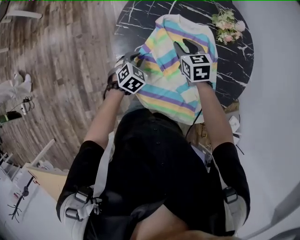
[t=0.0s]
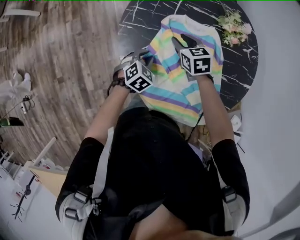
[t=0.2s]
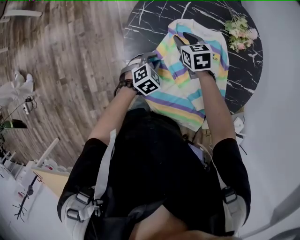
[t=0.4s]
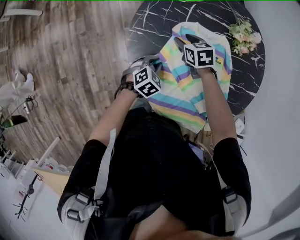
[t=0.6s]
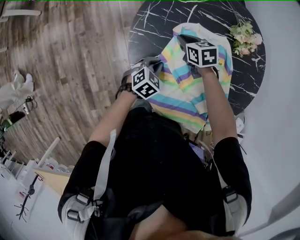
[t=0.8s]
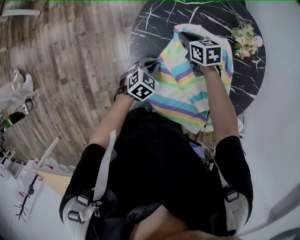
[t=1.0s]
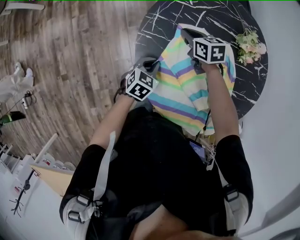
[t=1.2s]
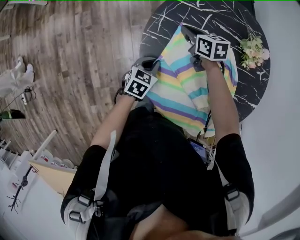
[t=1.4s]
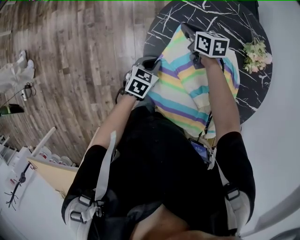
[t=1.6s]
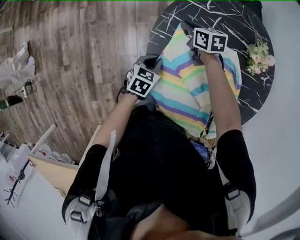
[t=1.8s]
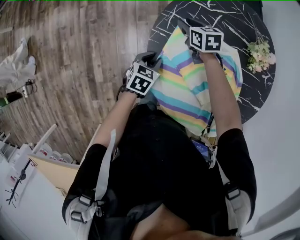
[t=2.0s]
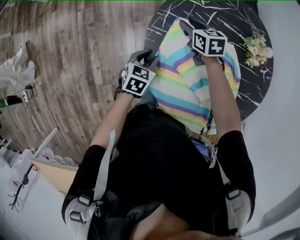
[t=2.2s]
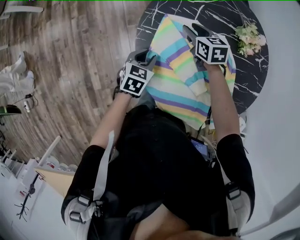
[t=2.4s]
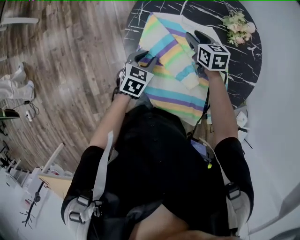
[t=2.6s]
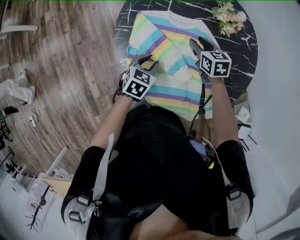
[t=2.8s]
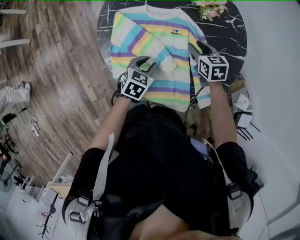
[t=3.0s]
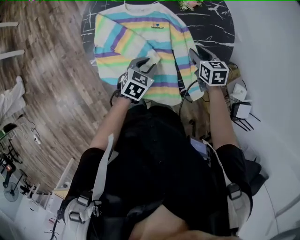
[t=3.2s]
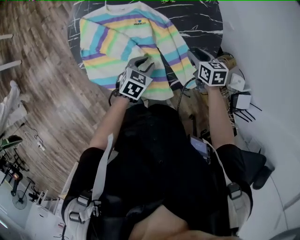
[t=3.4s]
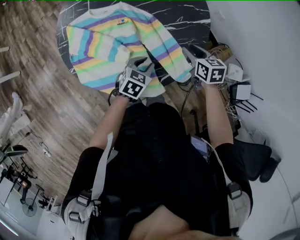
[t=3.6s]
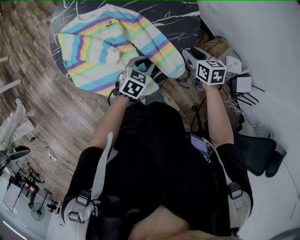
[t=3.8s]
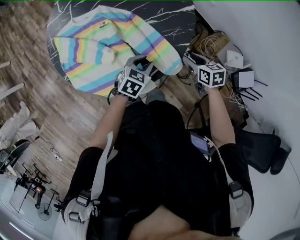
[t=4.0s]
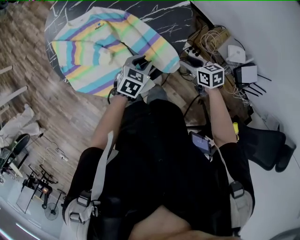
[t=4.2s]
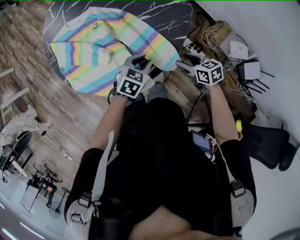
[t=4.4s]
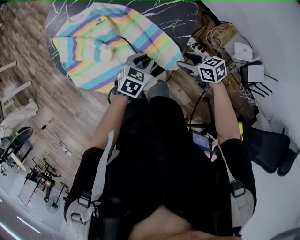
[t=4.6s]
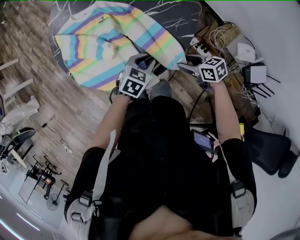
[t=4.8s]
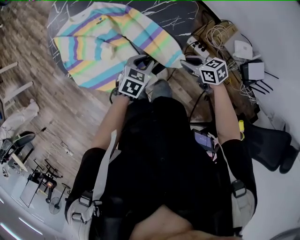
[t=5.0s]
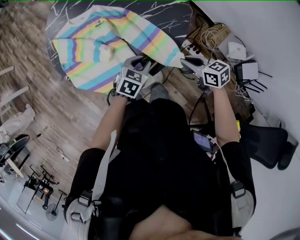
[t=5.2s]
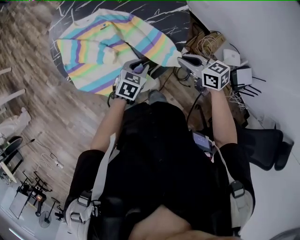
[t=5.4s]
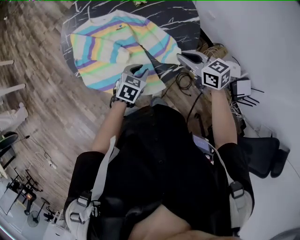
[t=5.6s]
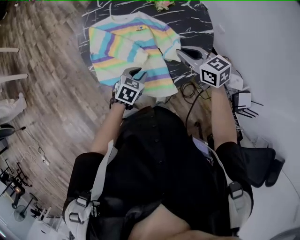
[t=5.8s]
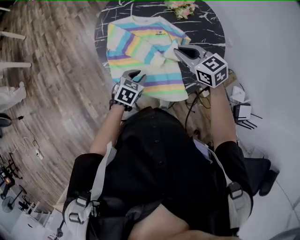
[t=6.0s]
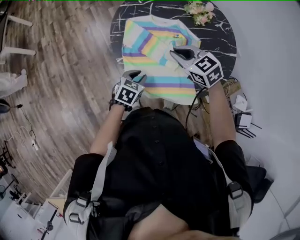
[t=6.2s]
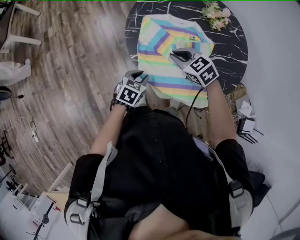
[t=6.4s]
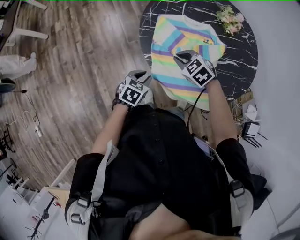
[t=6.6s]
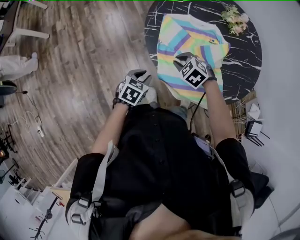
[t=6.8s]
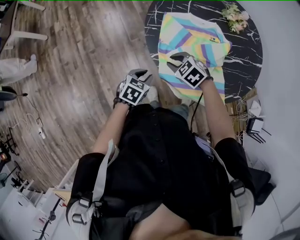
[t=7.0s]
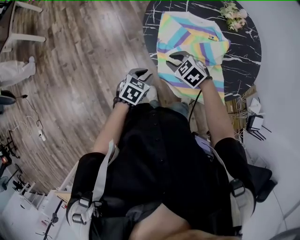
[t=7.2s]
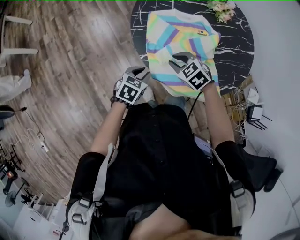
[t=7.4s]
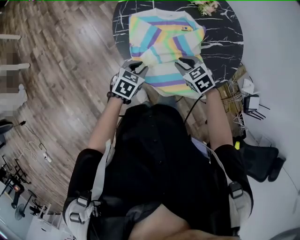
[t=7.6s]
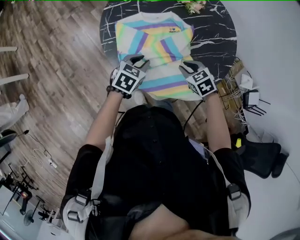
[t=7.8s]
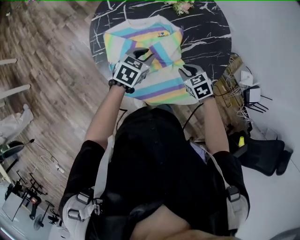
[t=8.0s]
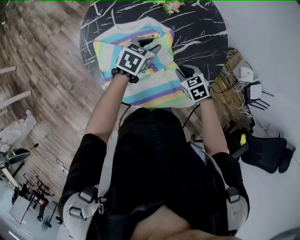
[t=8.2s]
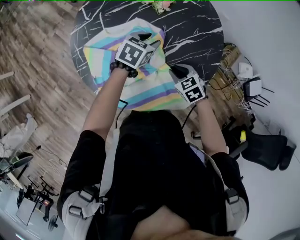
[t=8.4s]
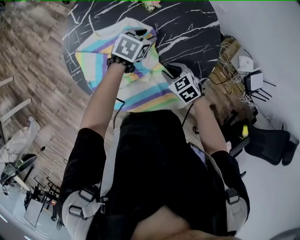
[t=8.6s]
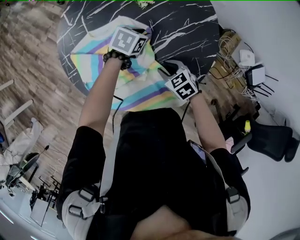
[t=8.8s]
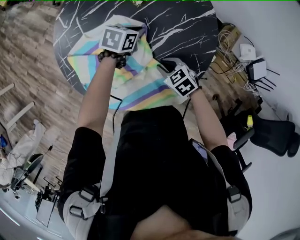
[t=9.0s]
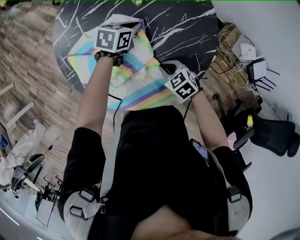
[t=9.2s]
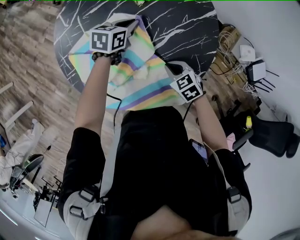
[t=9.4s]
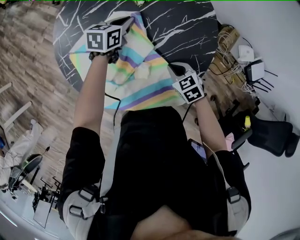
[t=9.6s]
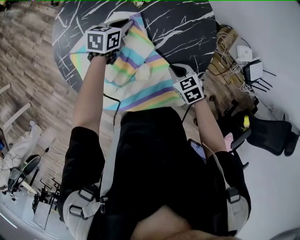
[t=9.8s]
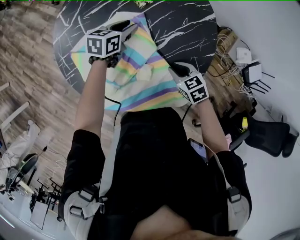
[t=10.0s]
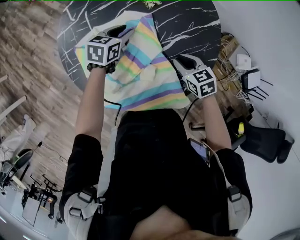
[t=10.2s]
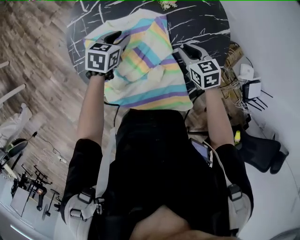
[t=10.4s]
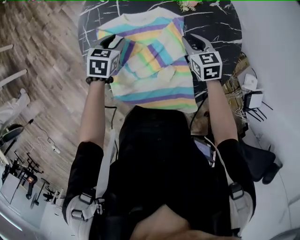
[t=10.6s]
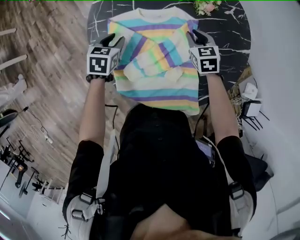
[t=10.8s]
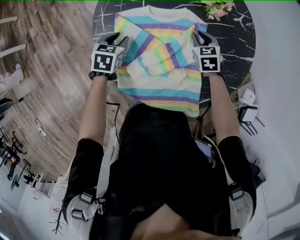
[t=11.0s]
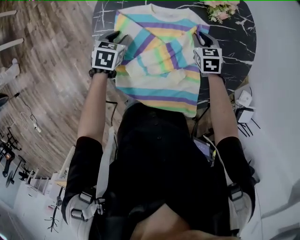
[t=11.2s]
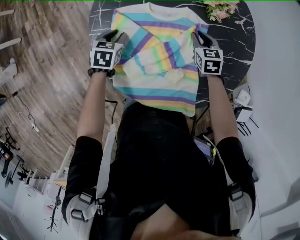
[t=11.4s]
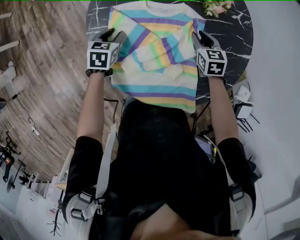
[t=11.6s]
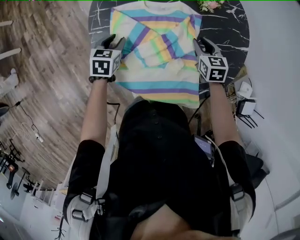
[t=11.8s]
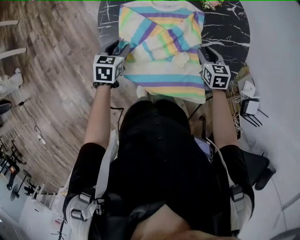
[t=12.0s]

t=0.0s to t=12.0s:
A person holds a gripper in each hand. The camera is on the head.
t=0.0s to t=1.6s: The right gripper moves to the left and forward, some 20 cm, and closes up. The left gripper heads to the left and forward, covering roughly 10 cm, and changes its angle by some 30 degrees.
t=1.6s to t=3.0s: The right gripper goes some 35 cm to the right and backward, turns by roughly 20 degrees, and opens up; the left gripper is displaced to the right and backward by roughly 20 cm, and rotates approximately 20 degrees.
t=3.0s to t=4.4s: The left gripper moves to the right, about 25 cm, and rotates about 30 degrees. Meanwhile the right gripper goes roughly 35 cm to the right and backward, and changes its angle by roughly 30 degrees.
t=4.4s to t=6.0s: The right gripper is displaced to the left, upward and forward by approximately 40 cm, swivels some 40 degrees, and closes up. The left gripper goes some 25 cm to the left.
t=6.0s to t=7.6s: The right gripper is displaced downward and to the left by some 20 cm, and swivels some 30 degrees. Meanwhile the left gripper is displaced to the left and forward by approximately 15 cm.
t=7.6s to t=9.0s: The left gripper heads forward and to the right, covering some 35 cm, and rotates roughly 20 degrees. The right gripper heads to the right, downward and forward, covering some 20 cm, and rotates approximately 20 degrees.
t=9.0s to t=10.4s: The left gripper moves to the left, some 15 cm, swivels approximately 20 degrees, and opens up; the right gripper is displaced forward and upward by some 10 cm.
t=10.4s to t=12.0s: The left gripper travels to the left and backward by approximately 20 cm, and rotates approximately 20 degrees; the right gripper reaches some 10 cm forward, then returns.

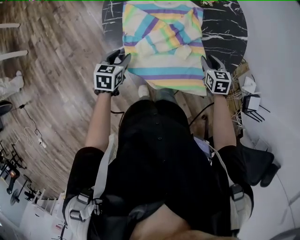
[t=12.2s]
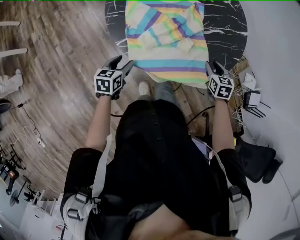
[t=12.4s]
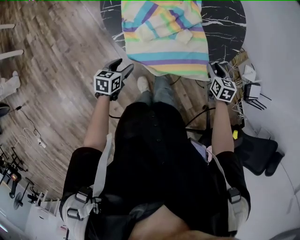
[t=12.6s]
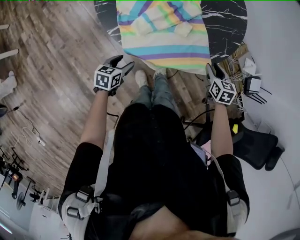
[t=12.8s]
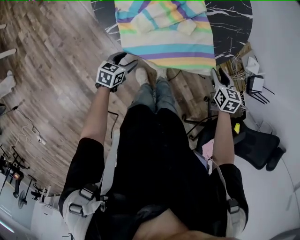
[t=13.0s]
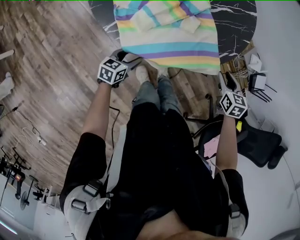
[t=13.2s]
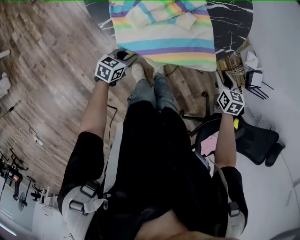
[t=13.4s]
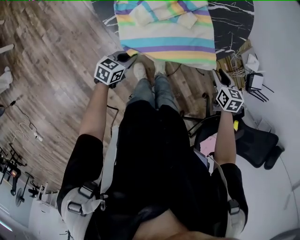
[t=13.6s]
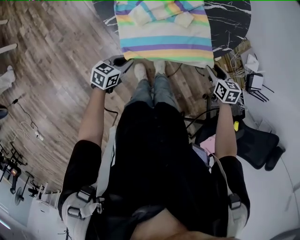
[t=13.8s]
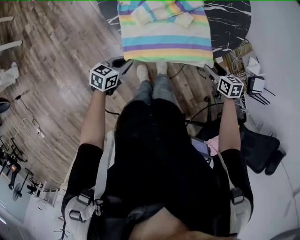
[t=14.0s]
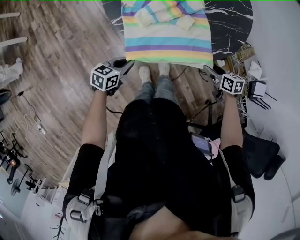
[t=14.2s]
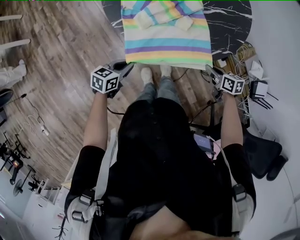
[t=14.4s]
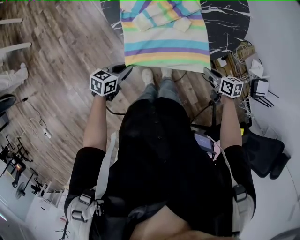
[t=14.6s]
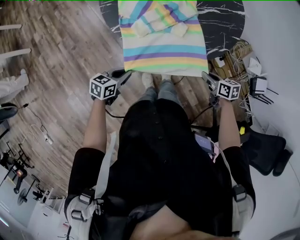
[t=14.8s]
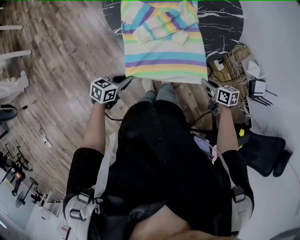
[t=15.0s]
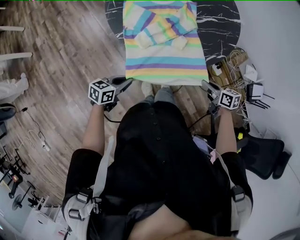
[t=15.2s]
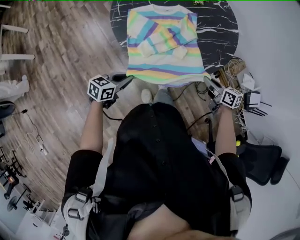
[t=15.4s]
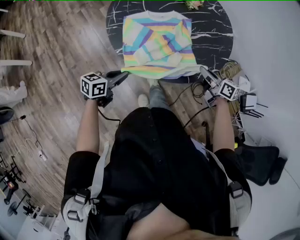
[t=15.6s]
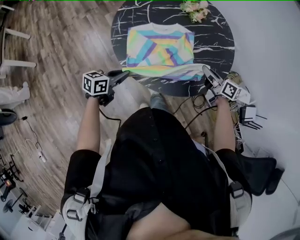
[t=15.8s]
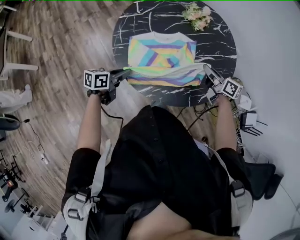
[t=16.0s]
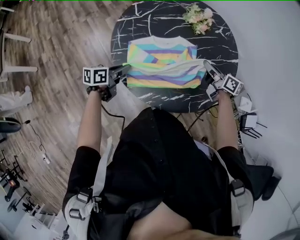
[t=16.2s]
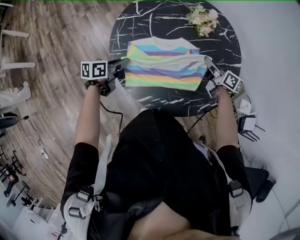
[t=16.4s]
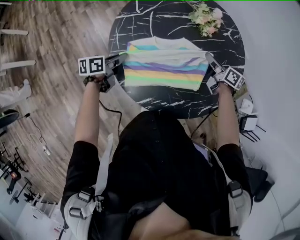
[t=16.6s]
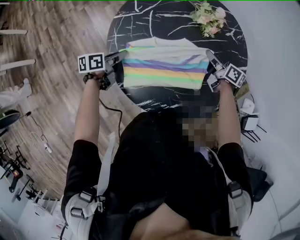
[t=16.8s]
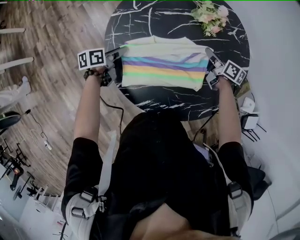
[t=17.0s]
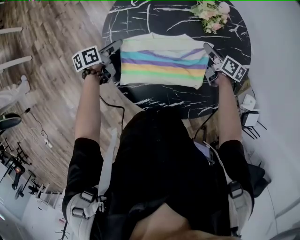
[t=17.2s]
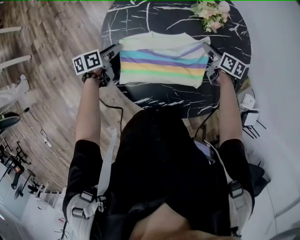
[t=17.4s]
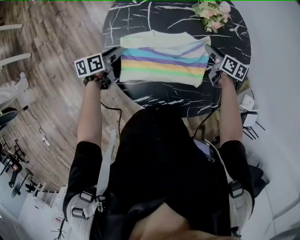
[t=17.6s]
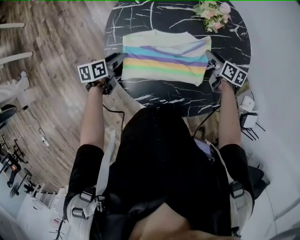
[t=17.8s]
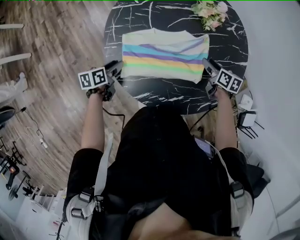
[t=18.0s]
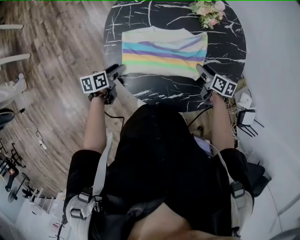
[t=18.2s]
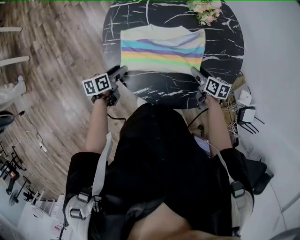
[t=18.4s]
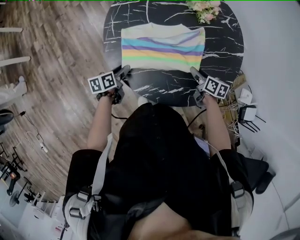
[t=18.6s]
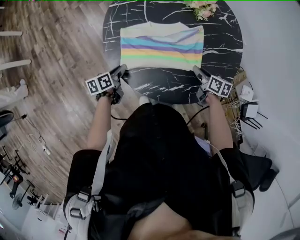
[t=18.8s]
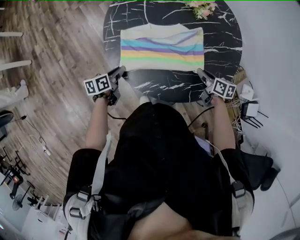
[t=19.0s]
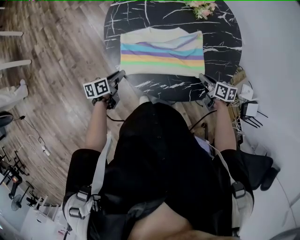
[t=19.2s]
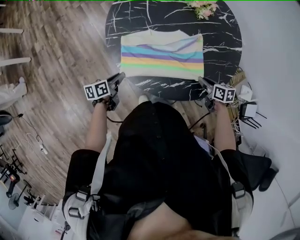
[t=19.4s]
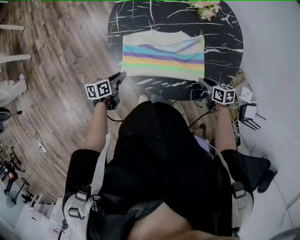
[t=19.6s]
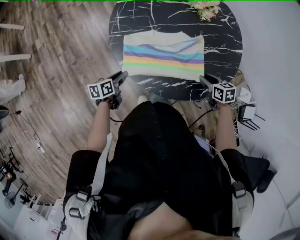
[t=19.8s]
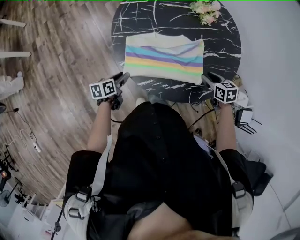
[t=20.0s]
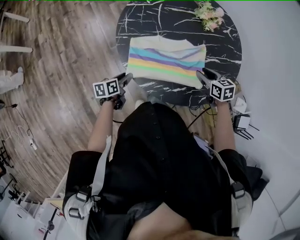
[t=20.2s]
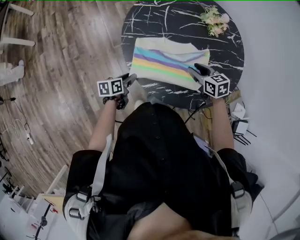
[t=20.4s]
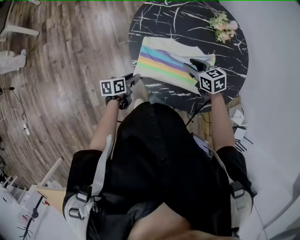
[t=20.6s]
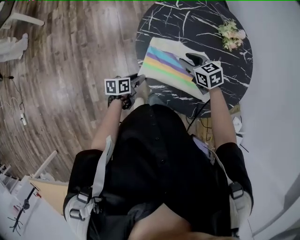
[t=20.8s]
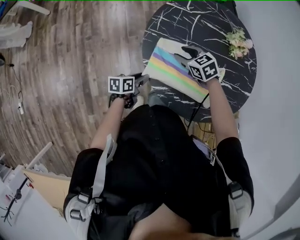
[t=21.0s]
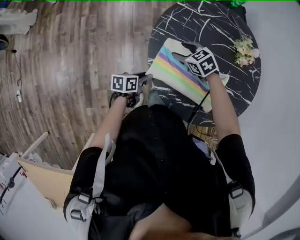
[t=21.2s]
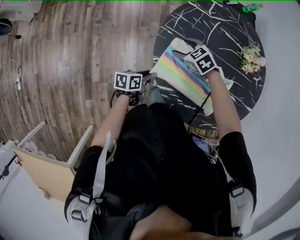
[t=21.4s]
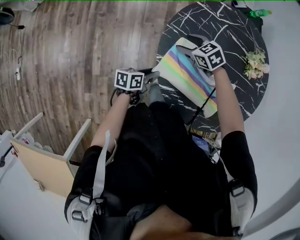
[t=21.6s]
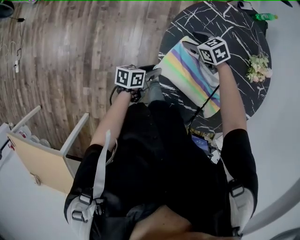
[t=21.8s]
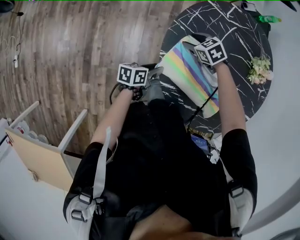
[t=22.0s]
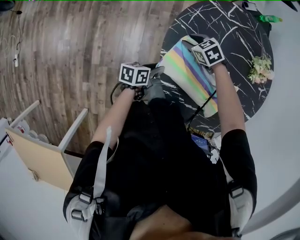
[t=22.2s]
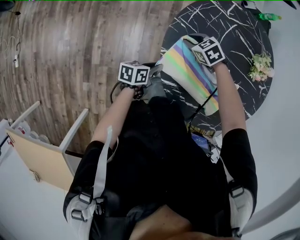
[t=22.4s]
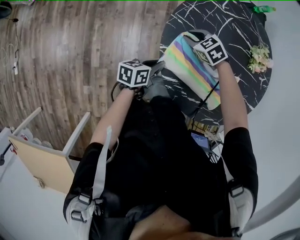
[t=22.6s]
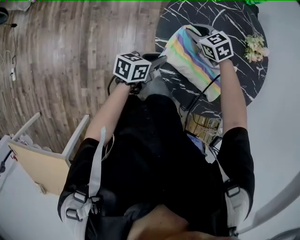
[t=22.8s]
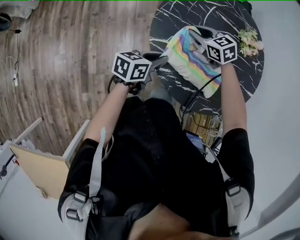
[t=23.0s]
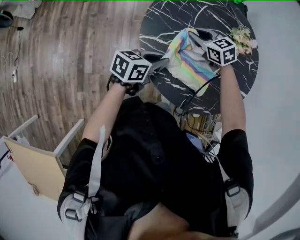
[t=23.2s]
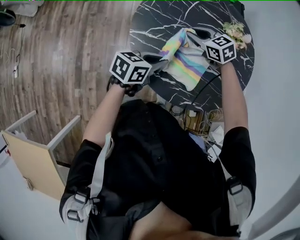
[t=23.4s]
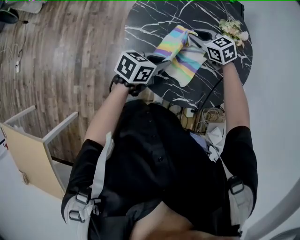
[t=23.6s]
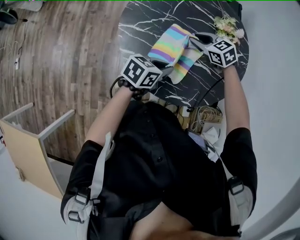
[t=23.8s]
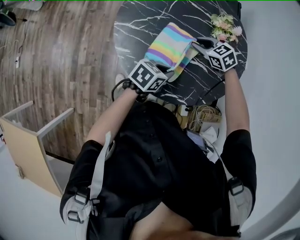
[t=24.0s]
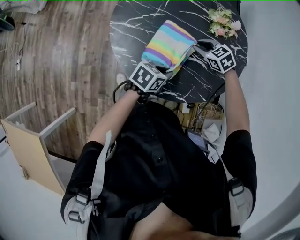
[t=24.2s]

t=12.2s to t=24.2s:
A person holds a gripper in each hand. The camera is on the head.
t=12.2s to t=13.8s: The left gripper travels backward, to the right and downward by approximately 20 cm, swivels roughly 30 degrees, and closes its fingers; the right gripper moves backward and to the right, about 20 cm.
t=13.8s to t=15.2s: The right gripper moves some 5 cm, swivels approximately 30 degrees, and closes up. Meanwhile the left gripper is displaced upward and backward by approximately 10 cm.
t=15.2s to t=16.6s: Both grippers travel together forward, approximately 40 cm. The left gripper swivels about 30 degrees.
t=16.6s to t=18.2s: Both grippers travel together backward and downward, some 10 cm. The right gripper rotates approximately 20 degrees, and opens its fingers. The left gripper opens its fingers.
t=18.2s to t=19.8s: Both grippers move backward, about 10 cm. The right gripper rotates about 20 degrees, and closes up. Meanwhile the left gripper closes its fingers.
t=19.8s to t=21.2s: The right gripper ends up some 40 cm from where it was, twists roughly 50 degrees counterclockwise, seen from behind, and opens.
t=21.2s to t=22.6s: The left gripper closes its fingers, while the right gripper closes up.
t=22.6s to t=24.2s: The right gripper moves roughly 35 cm; the left gripper moves roughly 35 cm, and changes its angle by approximately 20 degrees.
